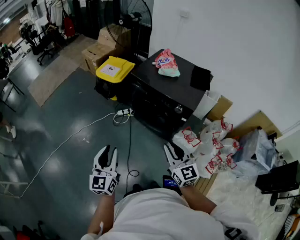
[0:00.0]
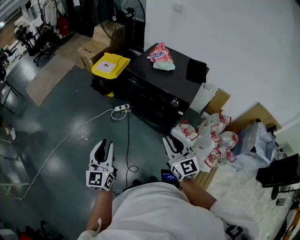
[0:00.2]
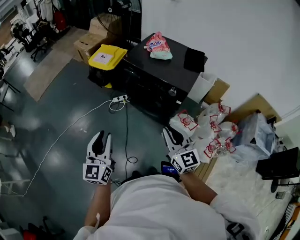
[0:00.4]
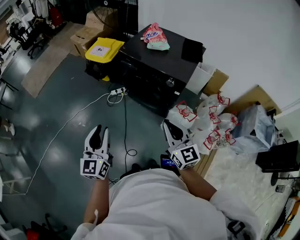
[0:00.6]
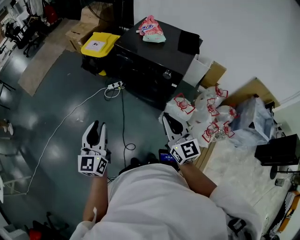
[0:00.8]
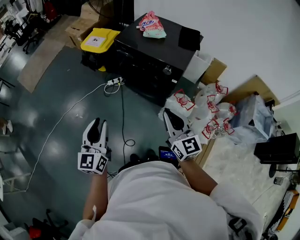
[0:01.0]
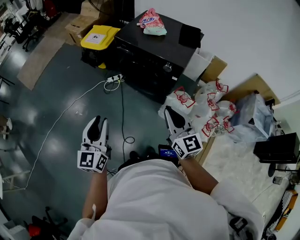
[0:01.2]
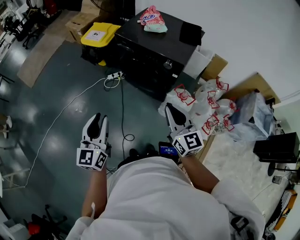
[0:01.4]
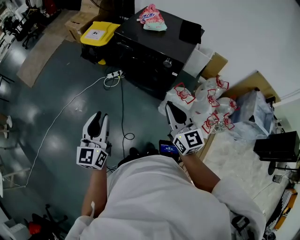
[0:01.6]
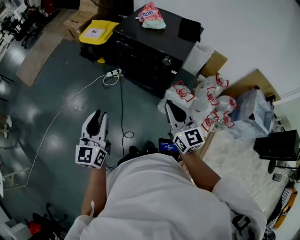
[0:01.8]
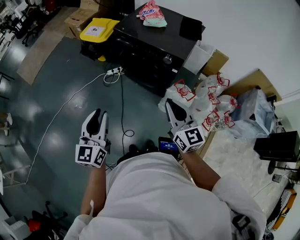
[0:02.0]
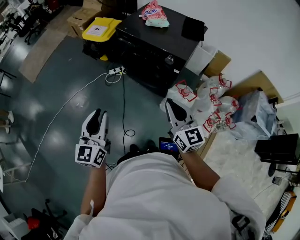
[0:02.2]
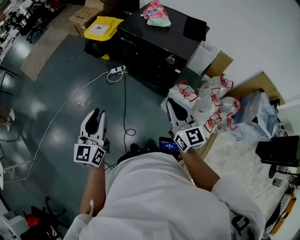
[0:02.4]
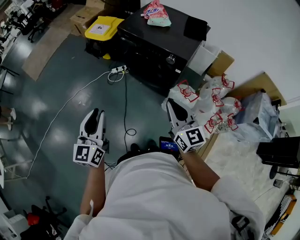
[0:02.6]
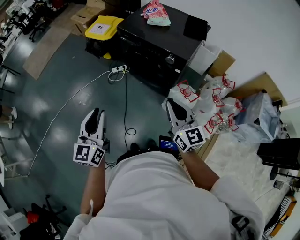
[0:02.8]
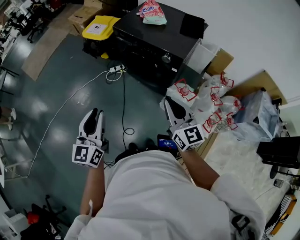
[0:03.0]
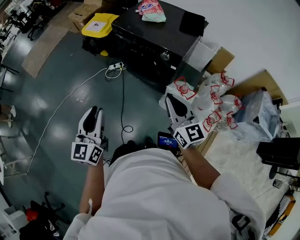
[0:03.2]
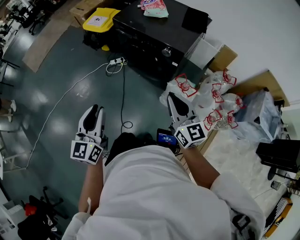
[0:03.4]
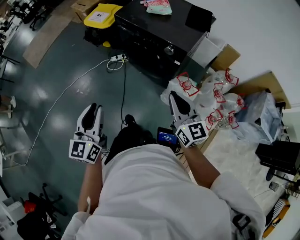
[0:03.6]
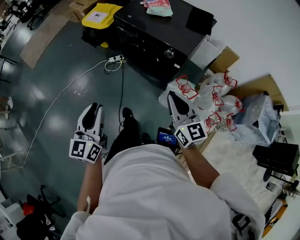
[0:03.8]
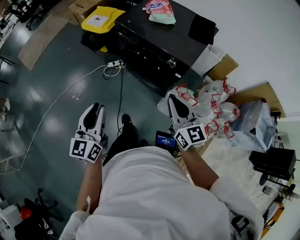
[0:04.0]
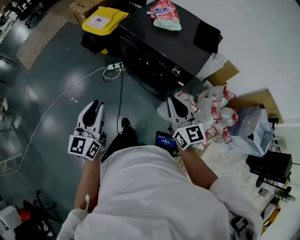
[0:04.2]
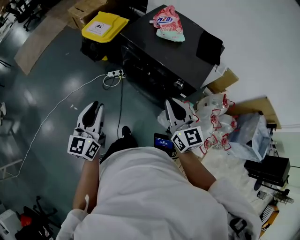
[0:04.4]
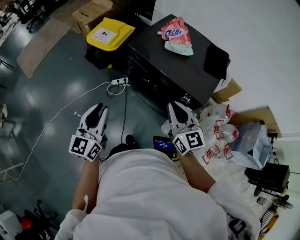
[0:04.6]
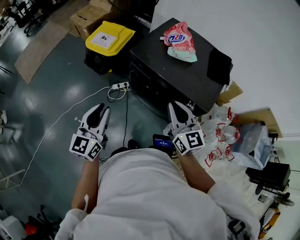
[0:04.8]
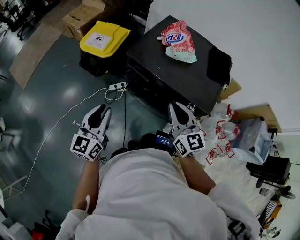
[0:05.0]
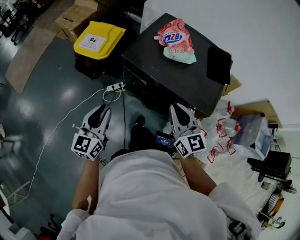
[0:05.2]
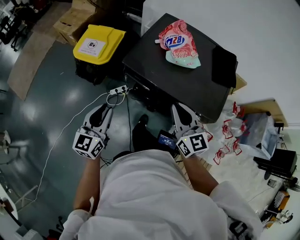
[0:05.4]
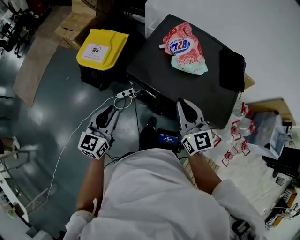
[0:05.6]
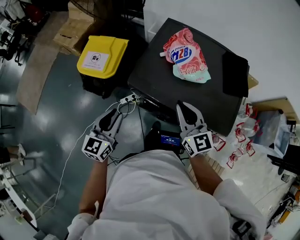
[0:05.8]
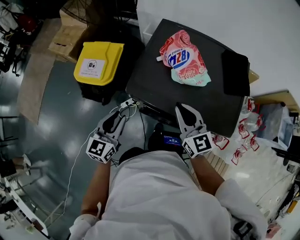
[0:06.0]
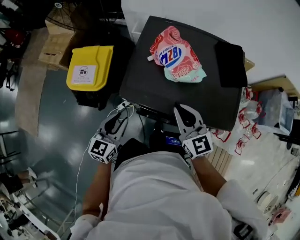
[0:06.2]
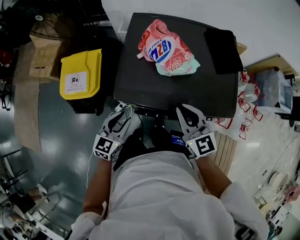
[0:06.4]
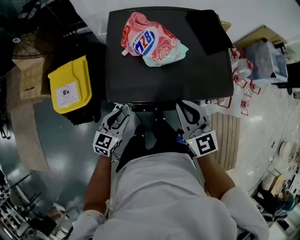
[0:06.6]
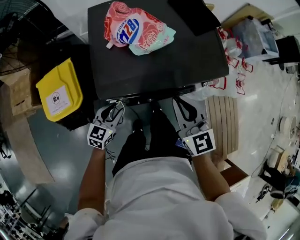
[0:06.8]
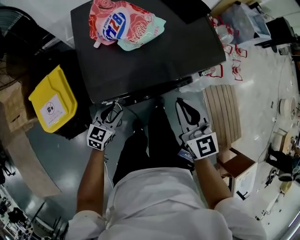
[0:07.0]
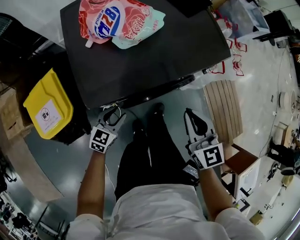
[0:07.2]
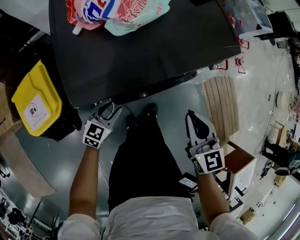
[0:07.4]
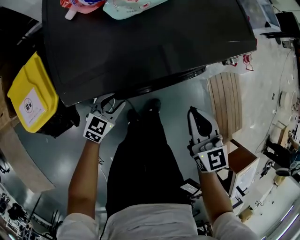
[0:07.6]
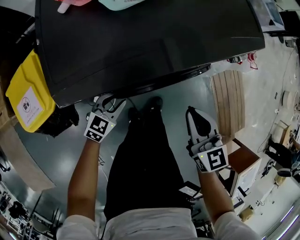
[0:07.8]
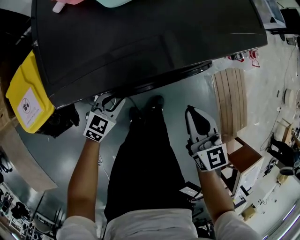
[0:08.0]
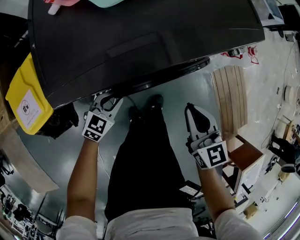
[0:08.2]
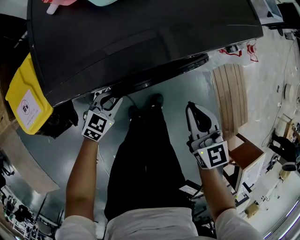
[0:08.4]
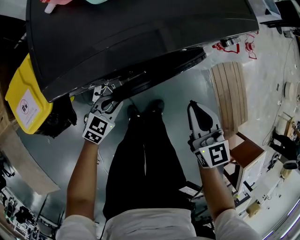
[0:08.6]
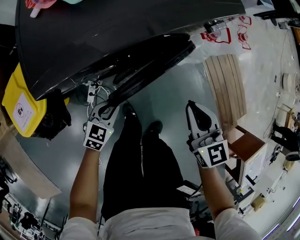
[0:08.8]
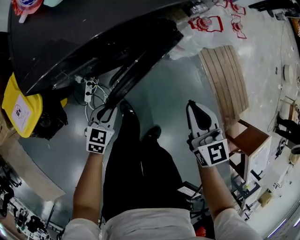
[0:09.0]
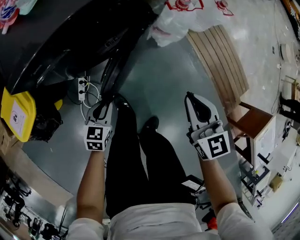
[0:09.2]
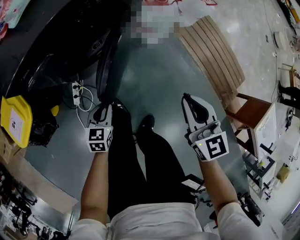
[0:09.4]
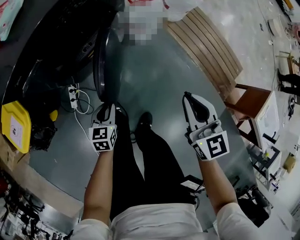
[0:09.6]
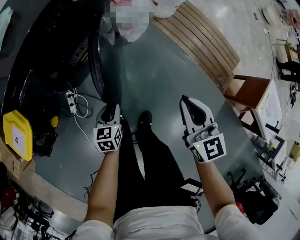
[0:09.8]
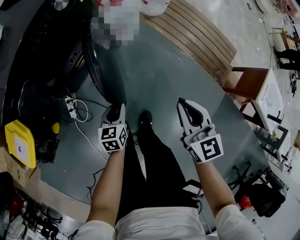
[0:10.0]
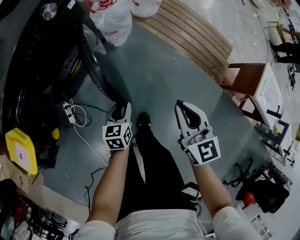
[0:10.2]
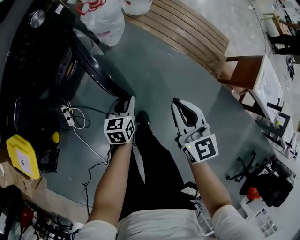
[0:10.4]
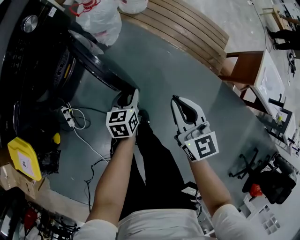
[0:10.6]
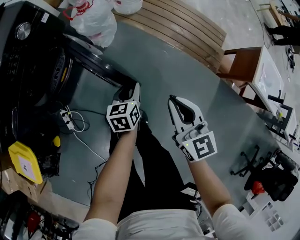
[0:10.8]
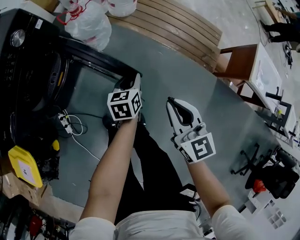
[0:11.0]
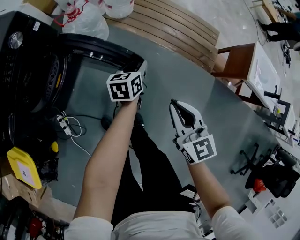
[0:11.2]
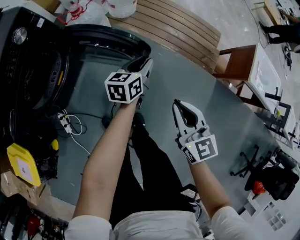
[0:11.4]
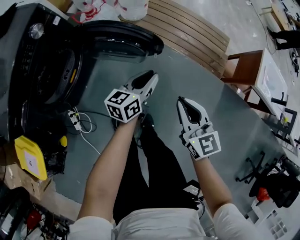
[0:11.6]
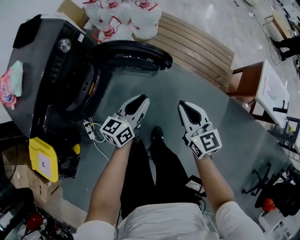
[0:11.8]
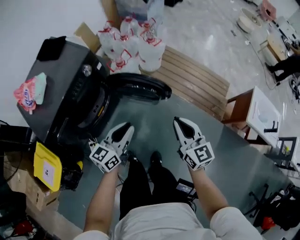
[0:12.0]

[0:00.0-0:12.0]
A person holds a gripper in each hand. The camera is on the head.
0:00.0 to 0:01.6: The right gripper is displaced to the right by approximately 5 cm, while the left gripper shifts by roughly 5 cm.
0:01.6 to 0:03.0: The grippers make only small movements.
0:03.0 to 0:04.4: Both grippers travel together forward, some 20 cm.
0:04.4 to 0:06.0: The grippers both shift forward by approximately 35 cm. The left gripper turns by approximately 30 degrees.
0:06.0 to 0:07.6: The left gripper shifts some 35 cm downward, and turns by approximately 60 degrees; the right gripper is displaced downward by roughly 20 cm, and changes its angle by some 50 degrees.
0:07.6 to 0:09.0: The left gripper shifts about 15 cm backward and to the right, and closes. The right gripper heads to the right and backward, covering about 15 cm.
0:09.0 to 0:10.4: The left gripper moves to the right, approximately 35 cm. The right gripper travels to the right and backward by some 30 cm, and rotates some 30 degrees.
0:10.4 to 0:12.0: The right gripper goes about 15 cm upward; the left gripper heads upward, covering some 30 cm, and tips its fingers upward by approximately 30 degrees.

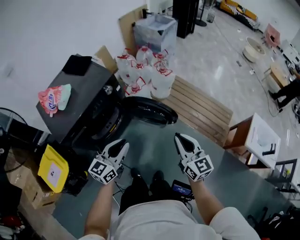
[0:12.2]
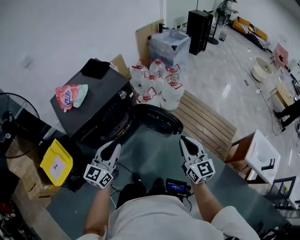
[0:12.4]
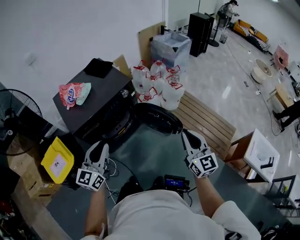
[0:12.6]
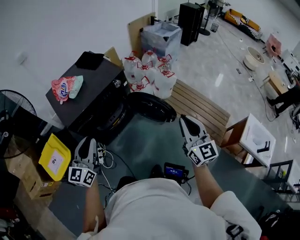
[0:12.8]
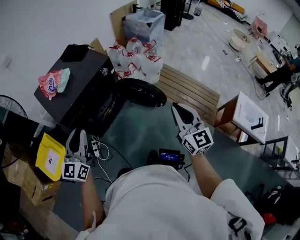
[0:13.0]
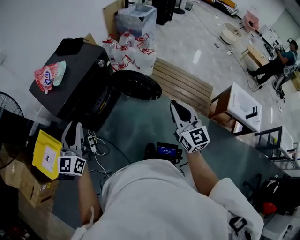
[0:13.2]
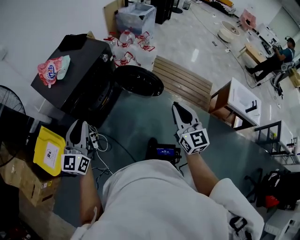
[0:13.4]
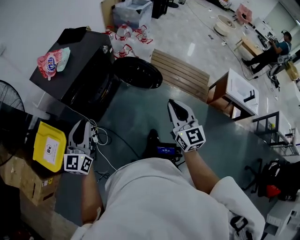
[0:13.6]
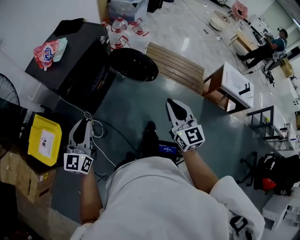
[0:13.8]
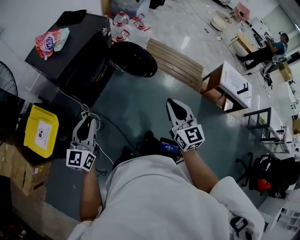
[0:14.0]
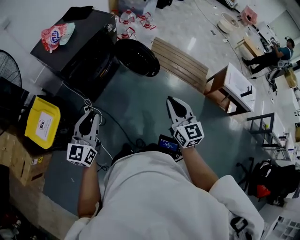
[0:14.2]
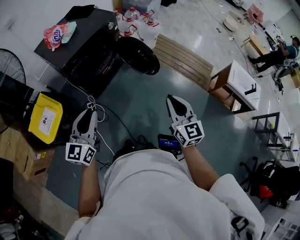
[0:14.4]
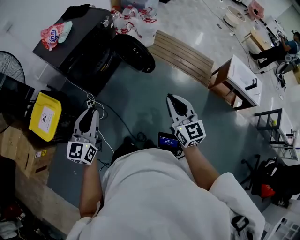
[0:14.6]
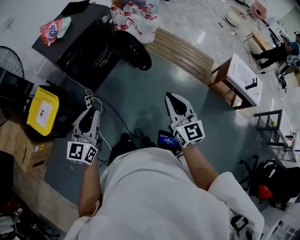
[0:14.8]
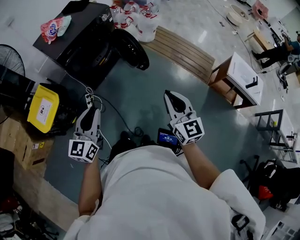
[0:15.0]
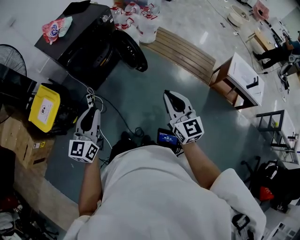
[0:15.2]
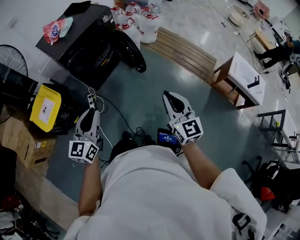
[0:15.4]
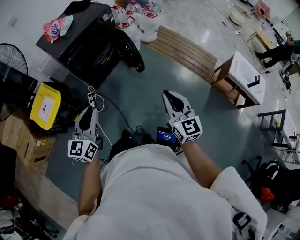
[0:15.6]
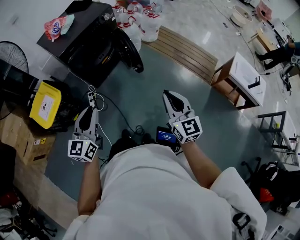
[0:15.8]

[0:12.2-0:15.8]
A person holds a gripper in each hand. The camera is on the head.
0:12.2 to 0:14.0: The grippers both shift backward and to the left by approximately 40 cm.
0:14.0 to 0:15.8: Both grippers travel together to the right and backward, some 15 cm.

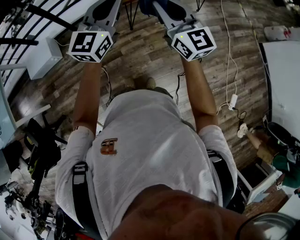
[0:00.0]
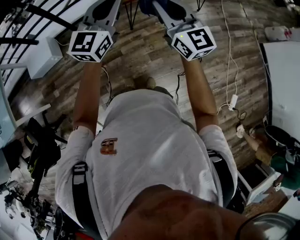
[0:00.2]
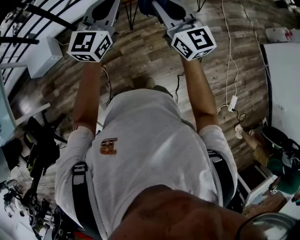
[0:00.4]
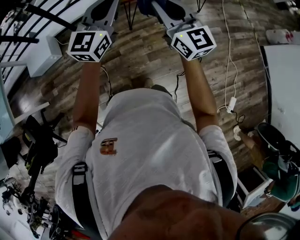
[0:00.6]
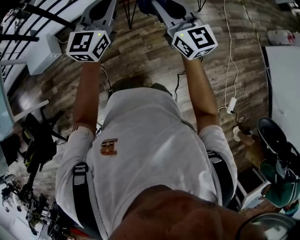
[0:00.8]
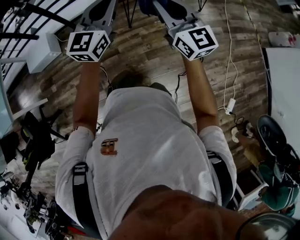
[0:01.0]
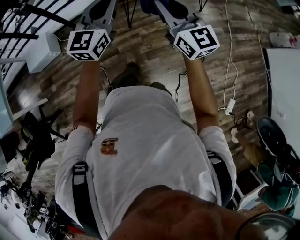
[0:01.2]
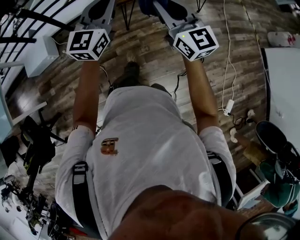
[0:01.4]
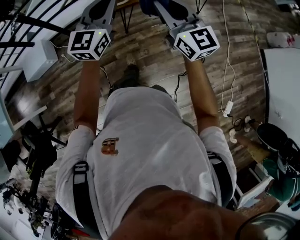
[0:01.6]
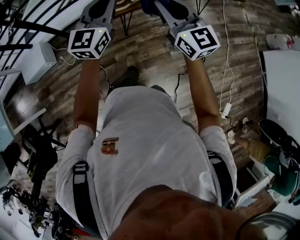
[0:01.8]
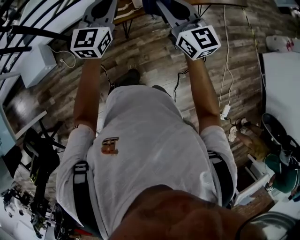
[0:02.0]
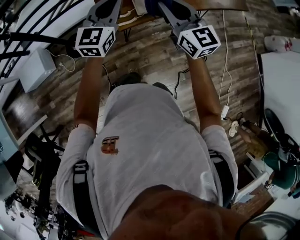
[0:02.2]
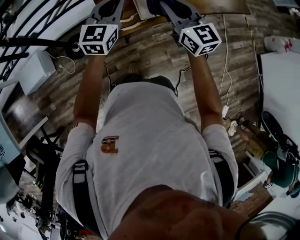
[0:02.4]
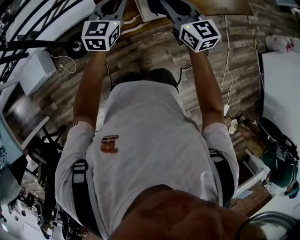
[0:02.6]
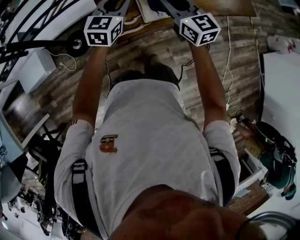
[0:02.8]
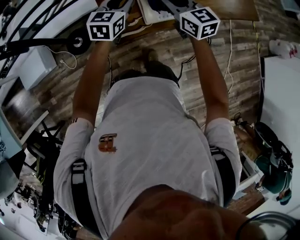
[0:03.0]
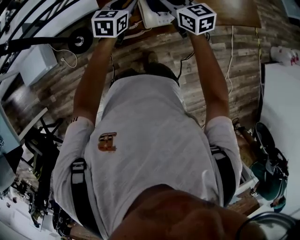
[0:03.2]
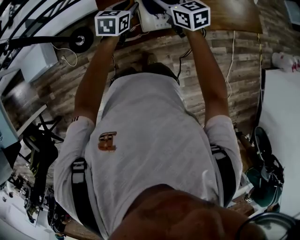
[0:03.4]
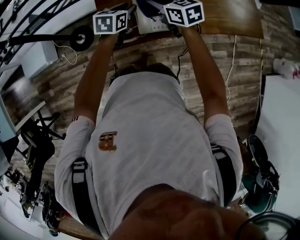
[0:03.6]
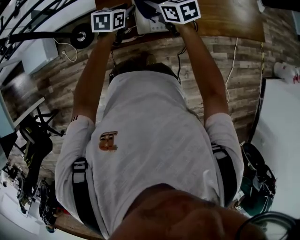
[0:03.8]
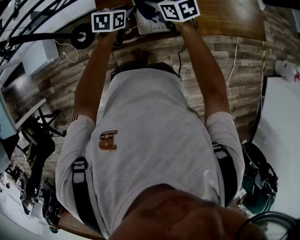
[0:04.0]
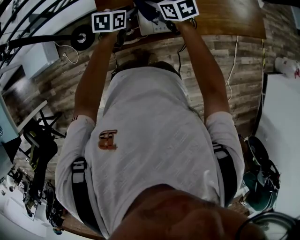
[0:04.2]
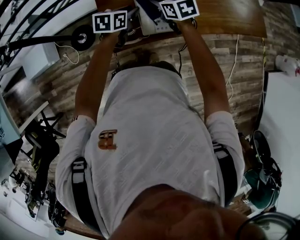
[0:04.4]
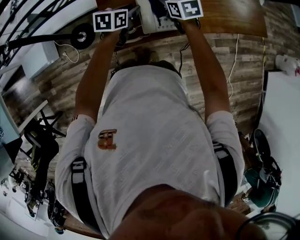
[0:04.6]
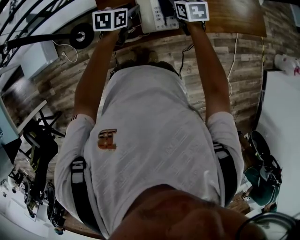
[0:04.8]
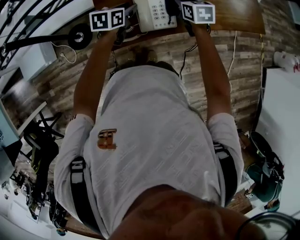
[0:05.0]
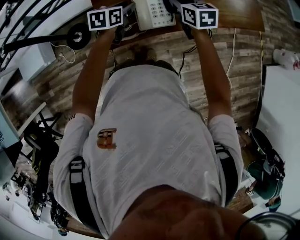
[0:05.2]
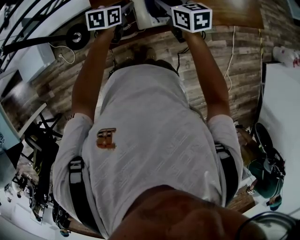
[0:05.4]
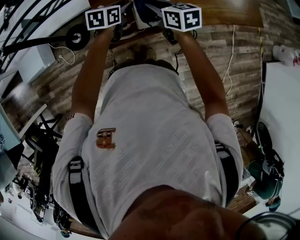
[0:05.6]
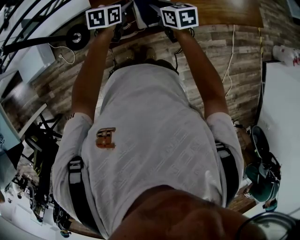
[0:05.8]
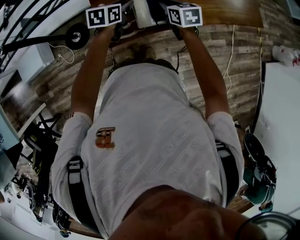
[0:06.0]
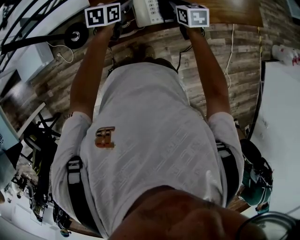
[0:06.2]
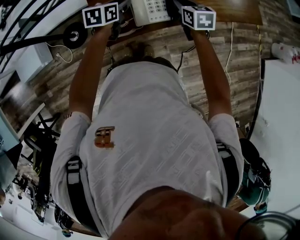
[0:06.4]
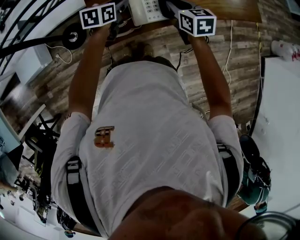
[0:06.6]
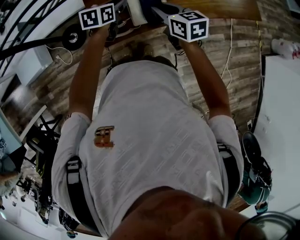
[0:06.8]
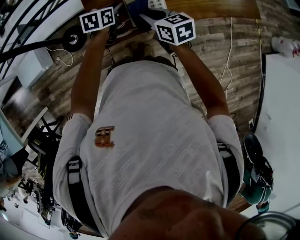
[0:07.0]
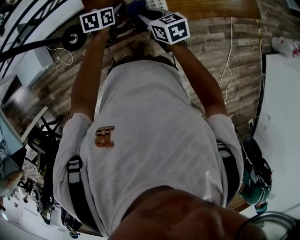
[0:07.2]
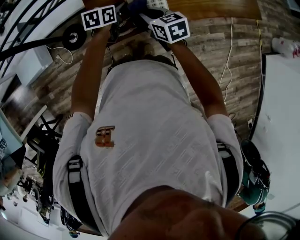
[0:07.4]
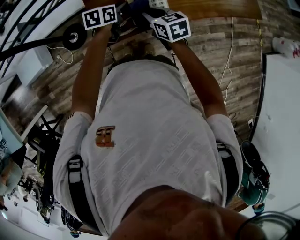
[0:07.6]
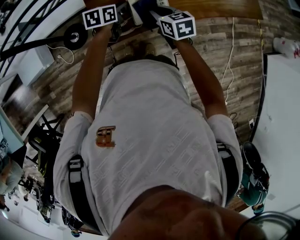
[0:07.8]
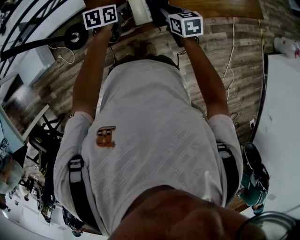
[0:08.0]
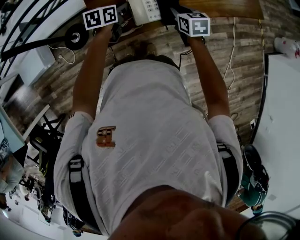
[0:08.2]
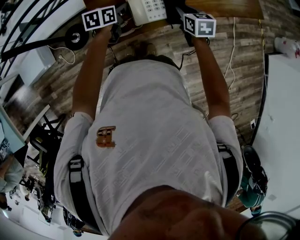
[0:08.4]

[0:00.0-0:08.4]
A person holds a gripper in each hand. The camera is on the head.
0:00.0 to 0:01.4: The left gripper is displaced forward and to the right by approximately 10 cm; the right gripper shifts roughly 10 cm to the right and forward.
0:01.4 to 0:02.8: The two grippers go about 40 cm forward.
0:02.8 to 0:04.2: The left gripper travels downward, forward and to the right by about 15 cm, and changes its angle by some 40 degrees. The right gripper is displaced forward and downward by some 15 cm, and rotates roughly 30 degrees.
0:04.2 to 0:05.6: The right gripper goes approximately 5 cm backward, and reaches about 10 cm to the right, then returns.
0:05.6 to 0:07.0: The right gripper reaches roughly 15 cm to the right, then returns.
0:07.0 to 0:08.4: The right gripper moves to the right and downward, approximately 15 cm, and changes its angle by roughly 20 degrees.
